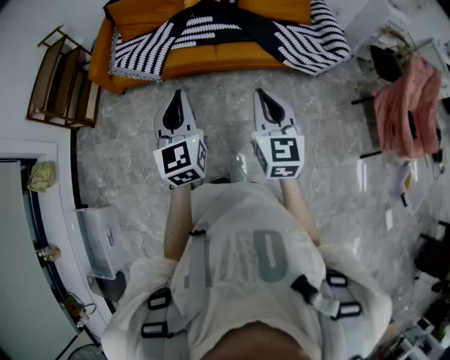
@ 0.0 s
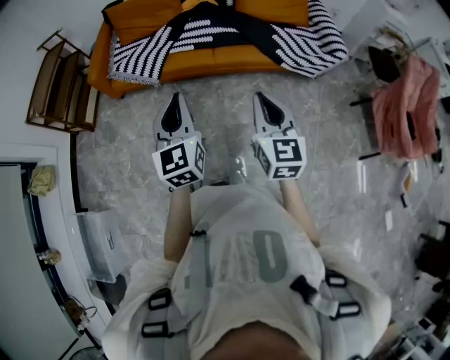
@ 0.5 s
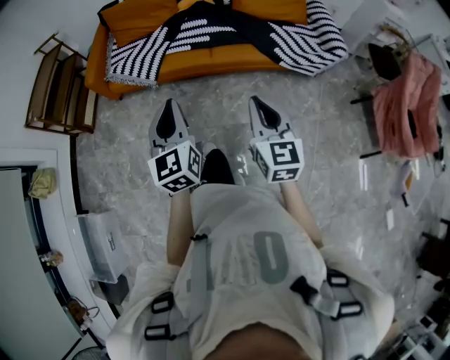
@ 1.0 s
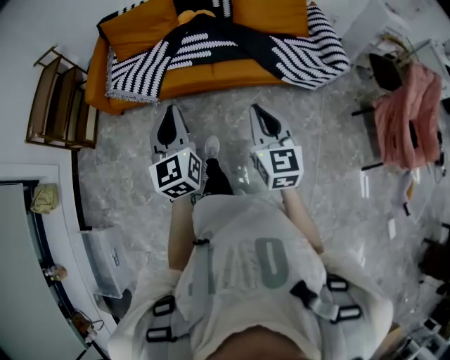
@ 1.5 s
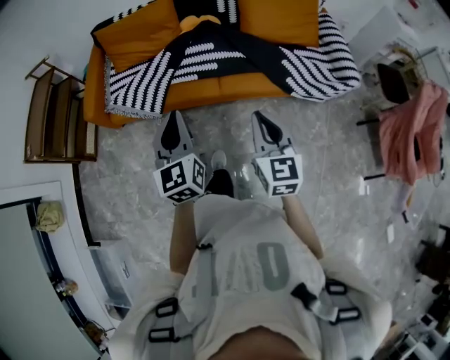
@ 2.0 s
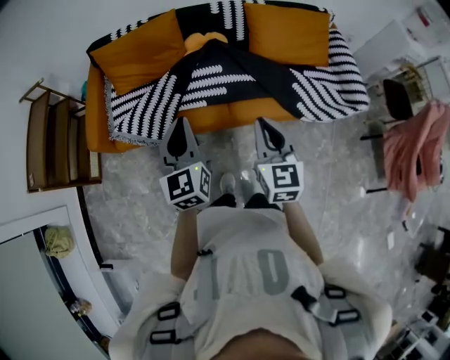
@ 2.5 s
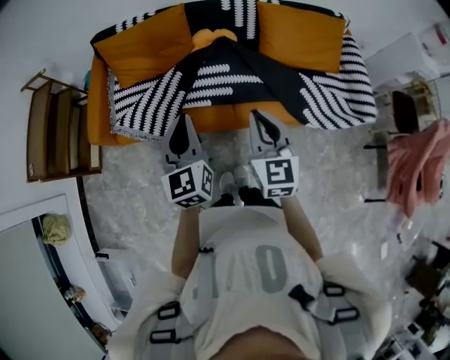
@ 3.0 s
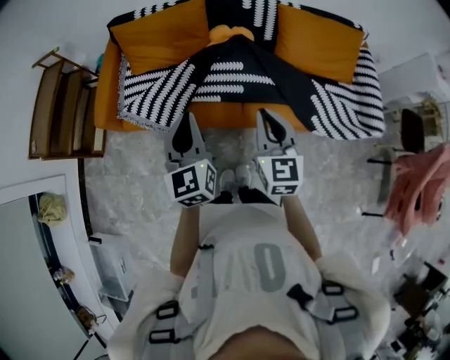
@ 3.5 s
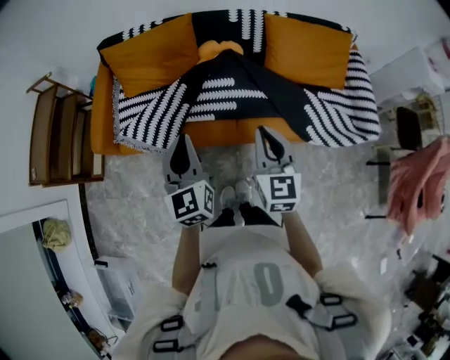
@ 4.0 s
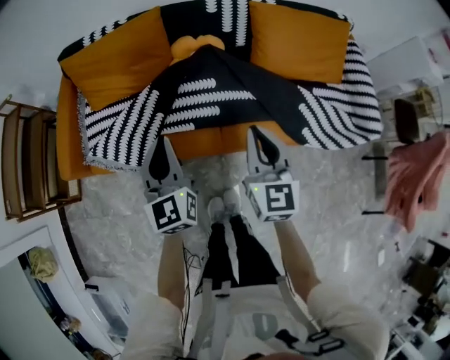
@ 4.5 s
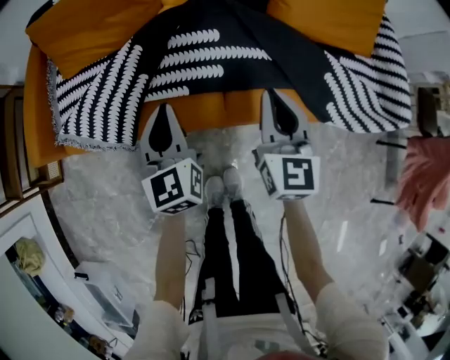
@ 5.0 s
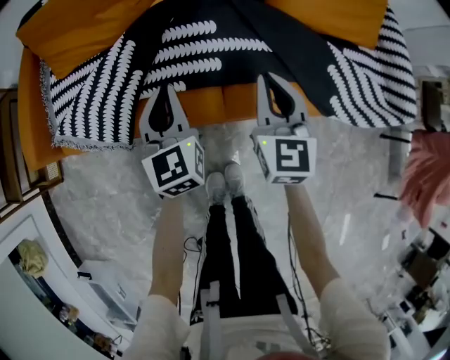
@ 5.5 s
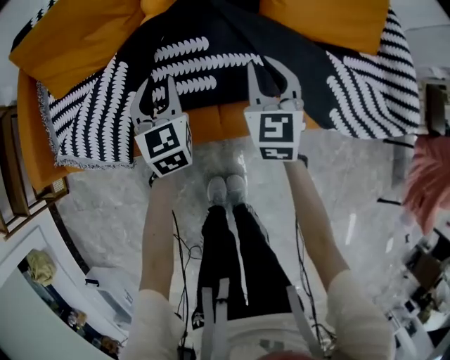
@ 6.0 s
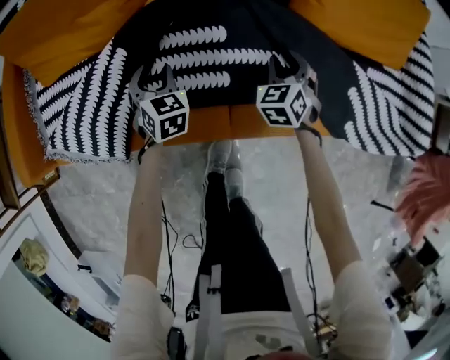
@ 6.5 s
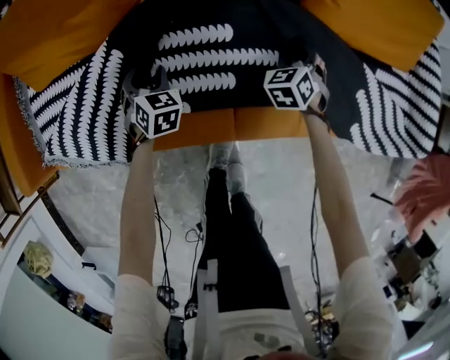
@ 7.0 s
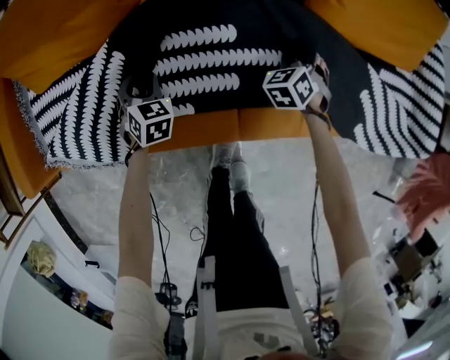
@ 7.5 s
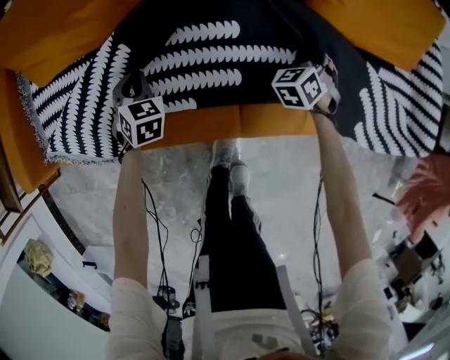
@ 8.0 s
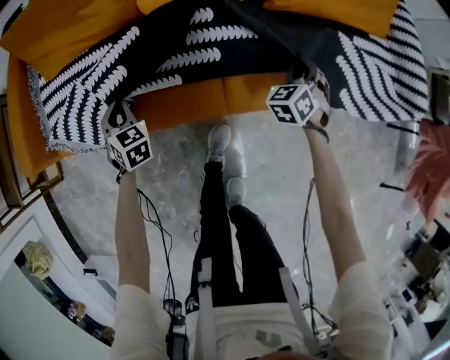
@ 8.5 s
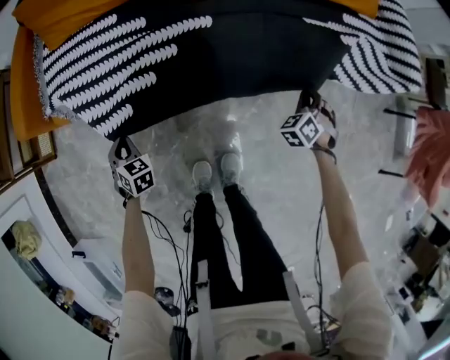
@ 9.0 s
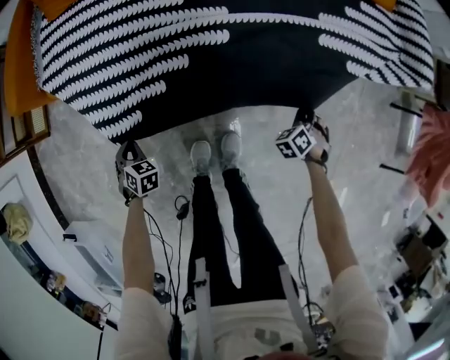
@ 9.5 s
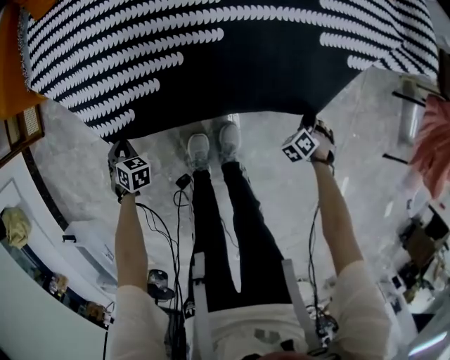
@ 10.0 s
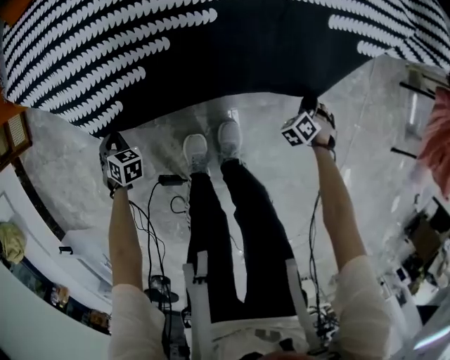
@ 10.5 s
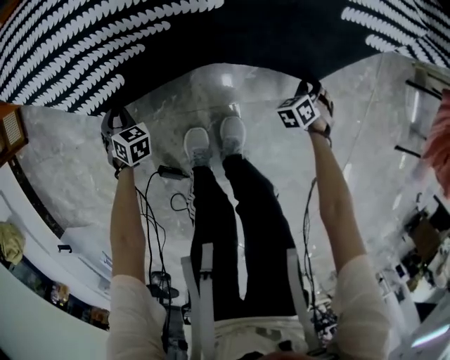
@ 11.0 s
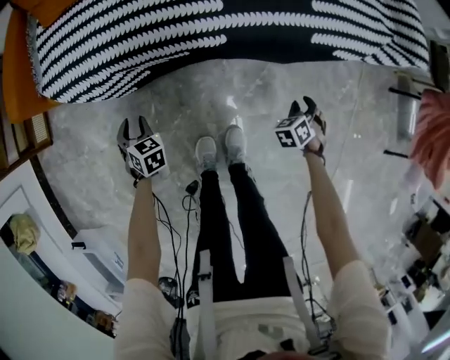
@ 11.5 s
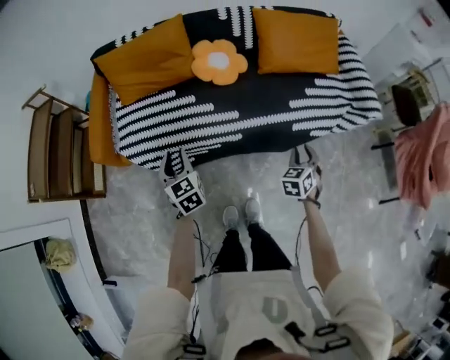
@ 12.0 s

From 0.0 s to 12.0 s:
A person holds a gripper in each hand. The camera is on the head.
From 0.0 s to 2.0 s: The two grippers go approximately 20 cm forward.
From 2.0 s to 4.0 s: The grippers both shift forward by about 20 cm.
From 4.0 s to 6.0 s: Both grippers travel together downward and forward, about 40 cm. The left gripper opens up.
From 6.0 s to 8.0 s: The right gripper goes some 25 cm downward, forward and to the right, and rotates some 50 degrees; the left gripper shifts some 25 cm downward and to the left, changes its angle by about 30 degrees, and closes.
From 8.0 s to 10.0 s: The left gripper shifts about 30 cm backward, and turns by roughly 30 degrees, while the right gripper swings forward and backward, approximately 30 cm each way, with 2 reversals, and rotates about 40 degrees.
From 10.0 s to 12.0 s: The left gripper moves upward and forward, about 50 cm, points its fingers about 40 degrees further upward, and opens. The right gripper heads upward, covering roughly 40 cm, rotates around the line of its fingers by about 50 degrees, clockwise from behind, and opens up.

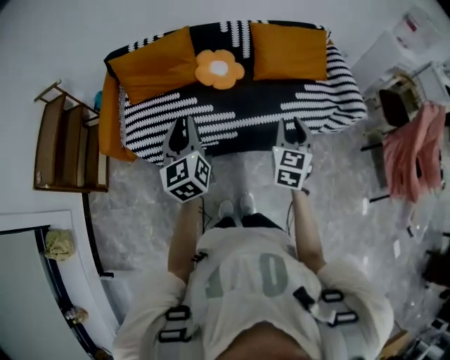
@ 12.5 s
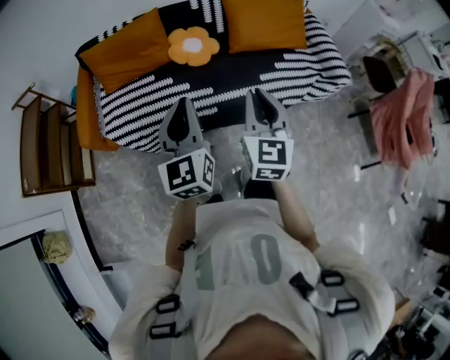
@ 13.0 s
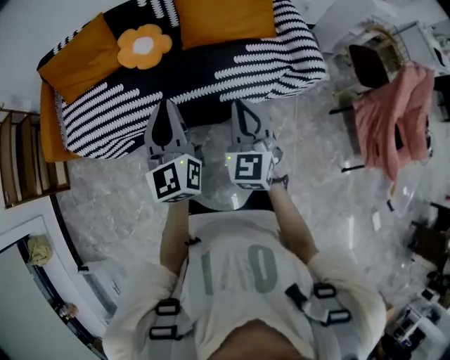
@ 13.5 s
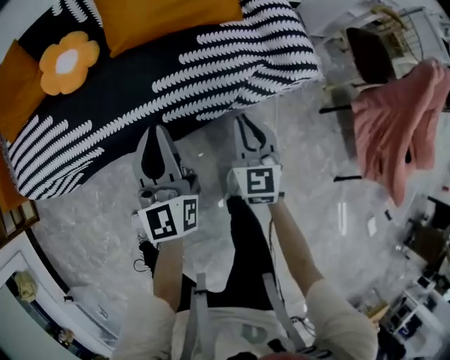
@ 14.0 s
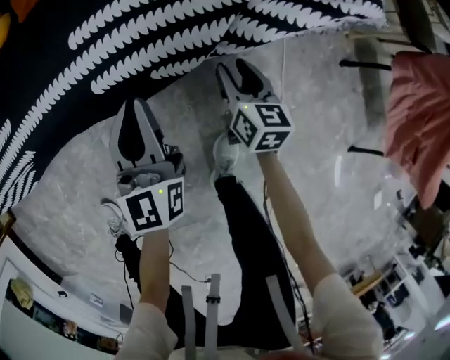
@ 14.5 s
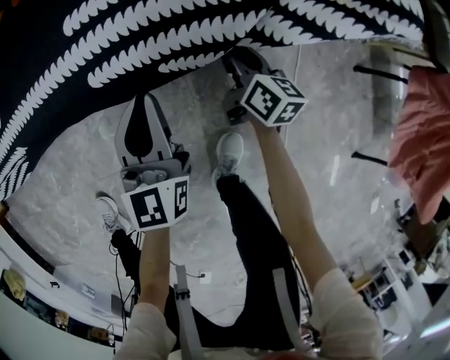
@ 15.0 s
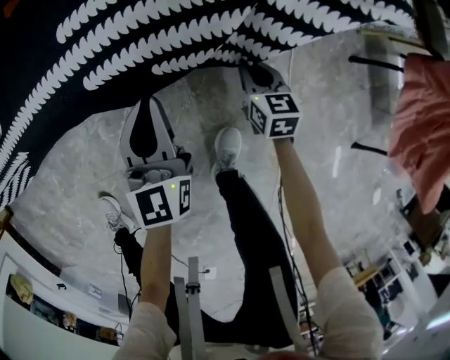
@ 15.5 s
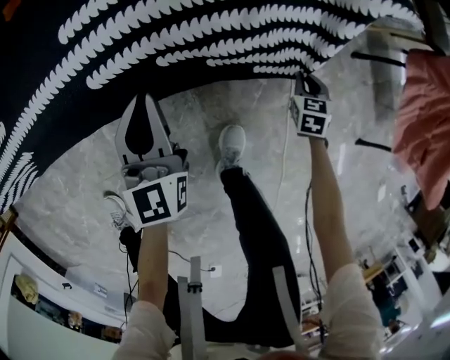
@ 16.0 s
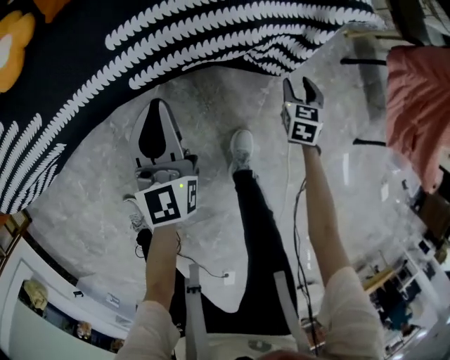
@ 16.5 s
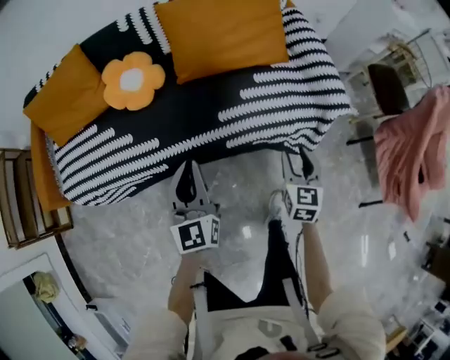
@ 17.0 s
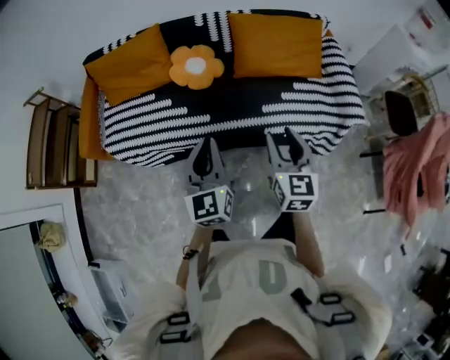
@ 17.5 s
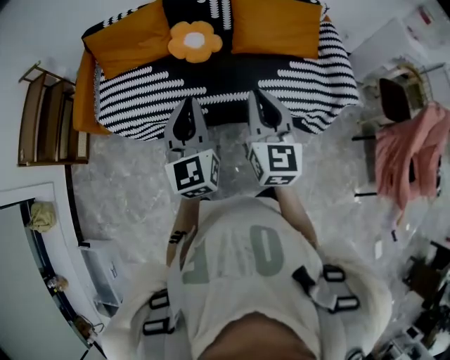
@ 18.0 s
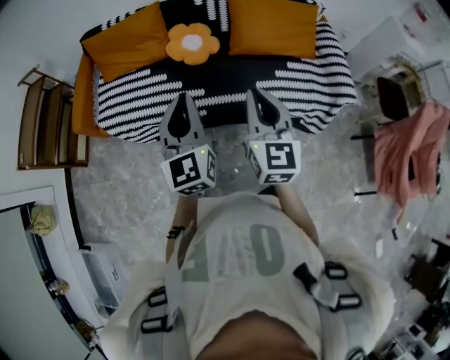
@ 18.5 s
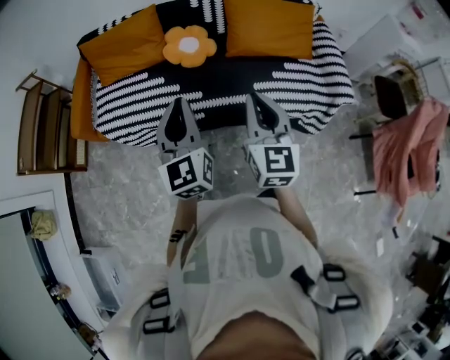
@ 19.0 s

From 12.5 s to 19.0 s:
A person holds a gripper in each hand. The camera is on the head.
From 12.5 s to 14.5 s: Both grippers are carried to the right, approximately 60 cm. Both grippers travel together downward, some 60 cm. The right gripper turns by approximately 40 degrees, and closes, then reopens.
From 14.5 s to 17.0 s: Both grippers move upward, about 35 cm. The right gripper turns by some 20 degrees, and closes and opens again.
From 17.0 s to 19.0 s: The right gripper moves upward and to the left, roughly 50 cm, changes its angle by some 30 degrees, and closes; the left gripper shifts about 35 cm upward, to the left and backward.

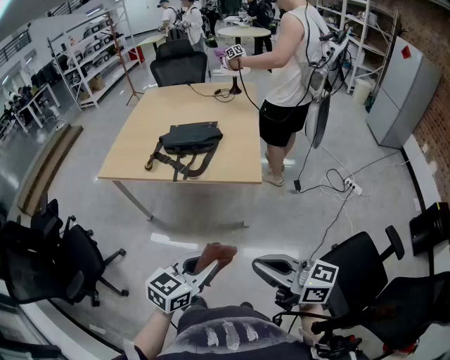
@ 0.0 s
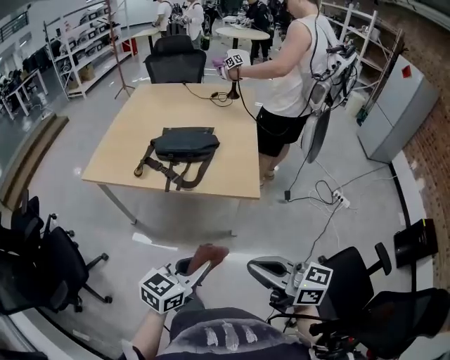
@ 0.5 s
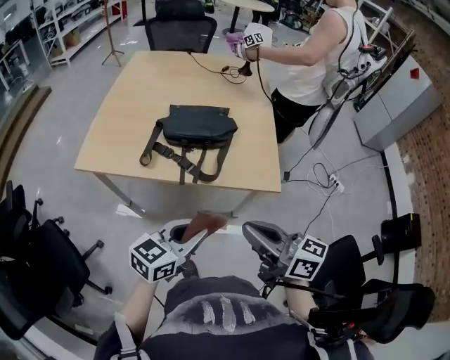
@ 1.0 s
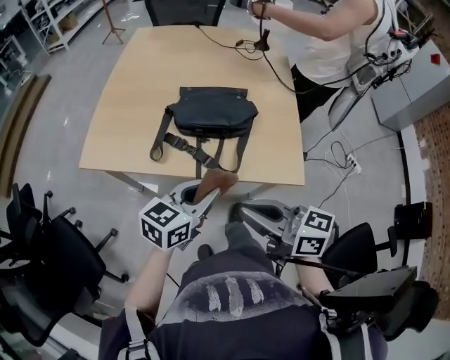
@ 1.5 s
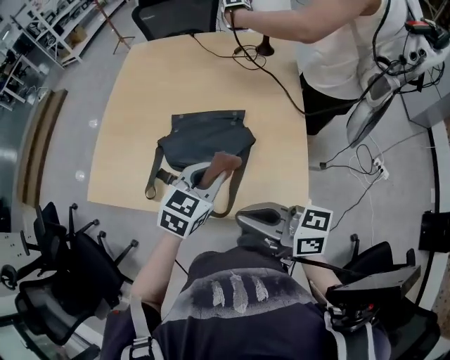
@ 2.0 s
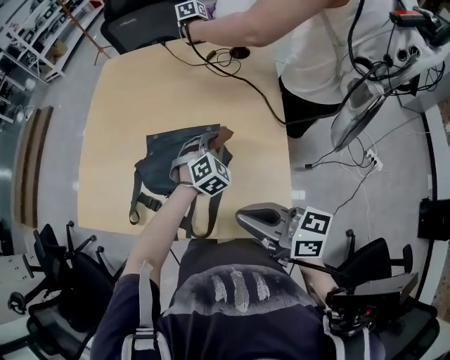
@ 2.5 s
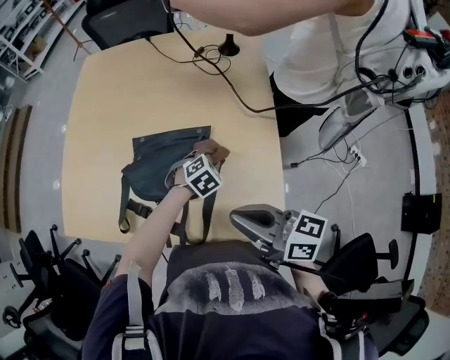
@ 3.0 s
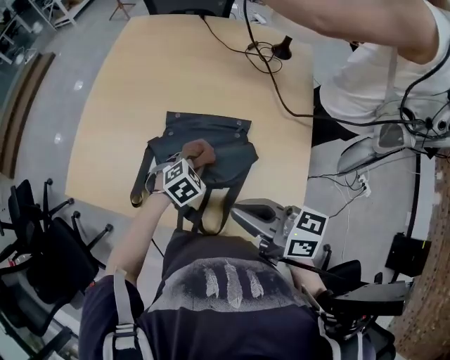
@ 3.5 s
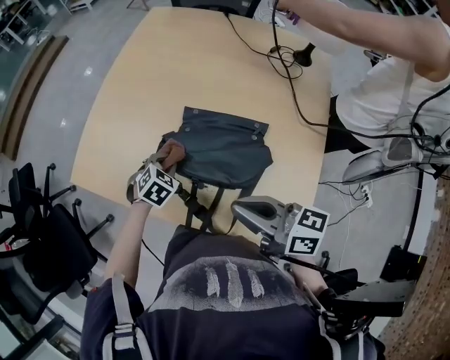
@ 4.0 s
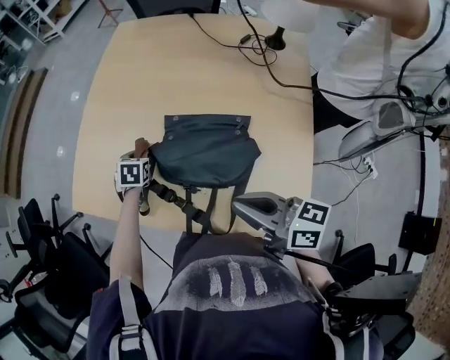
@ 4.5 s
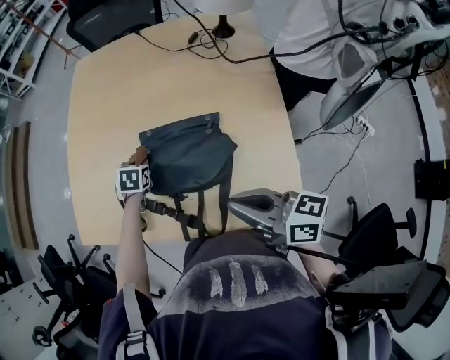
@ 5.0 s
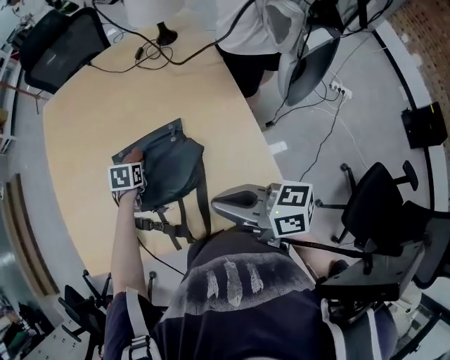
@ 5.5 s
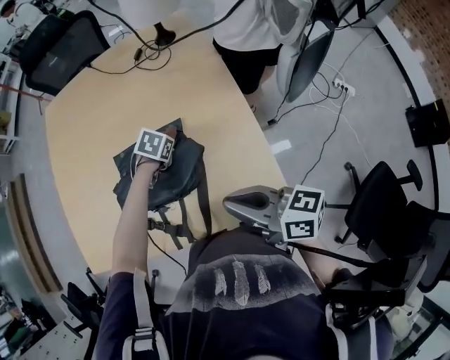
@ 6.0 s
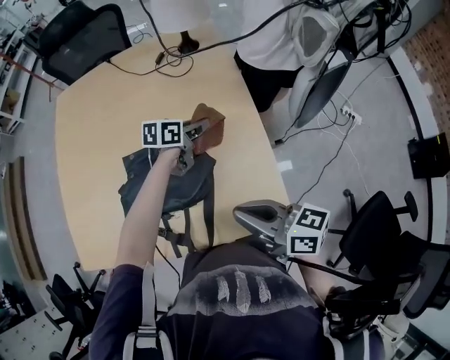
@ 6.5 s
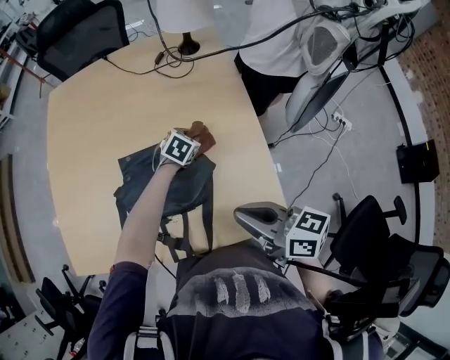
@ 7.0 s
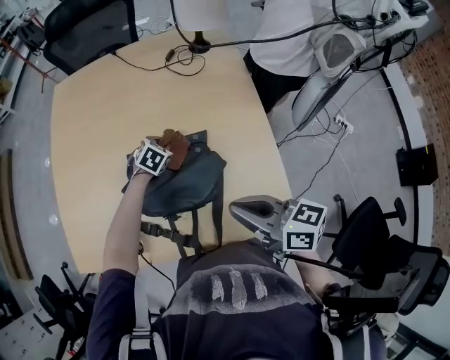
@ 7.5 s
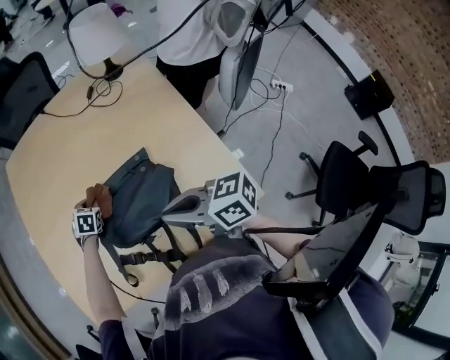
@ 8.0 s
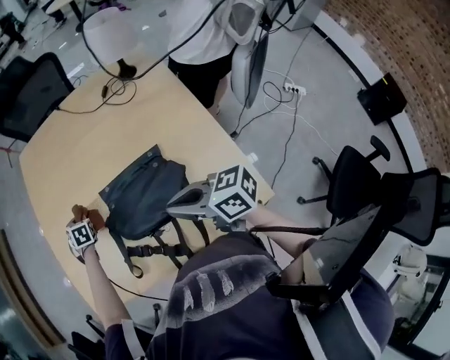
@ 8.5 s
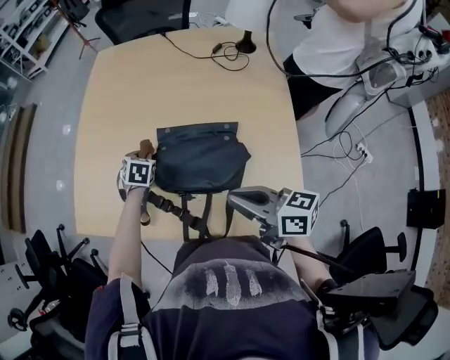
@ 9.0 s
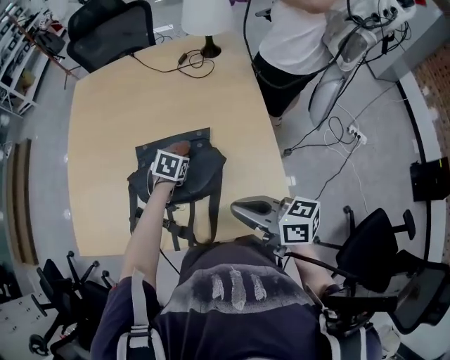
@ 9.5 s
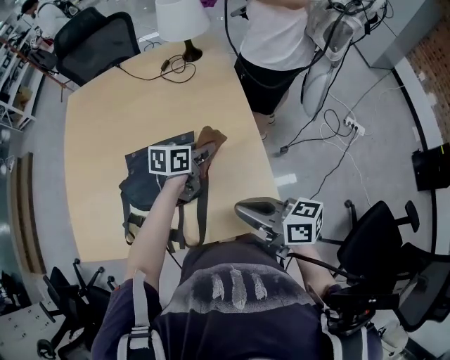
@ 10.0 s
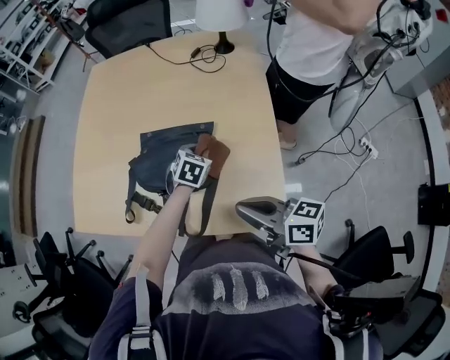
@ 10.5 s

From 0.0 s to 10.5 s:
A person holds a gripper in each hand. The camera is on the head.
From 0.0 s to 2.0 s: The pair of grippers is taken forward, about 50 cm.
From 2.0 s to 4.0 s: The right gripper changes place by approximately 15 cm. The left gripper changes place by approximately 30 cm, and swivels some 30 degrees.
From 4.0 s to 6.5 s: The left gripper moves some 40 cm, and angles its fingers upward, by some 30 degrees; the right gripper moves approximately 15 cm, and rotates approximately 30 degrees.
From 6.5 s to 8.5 s: The left gripper changes place by some 50 cm, and swivels approximately 70 degrees. The right gripper ends up roughly 10 cm from where it was.
From 8.5 s to 10.5 s: The right gripper moves some 15 cm, while the left gripper goes upward and returns, about 5 cm each way, and rotates approximately 20 degrees.
